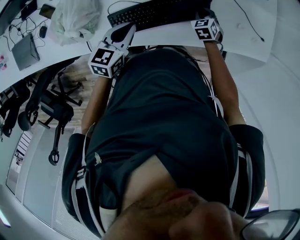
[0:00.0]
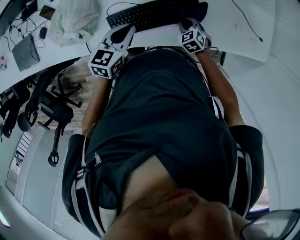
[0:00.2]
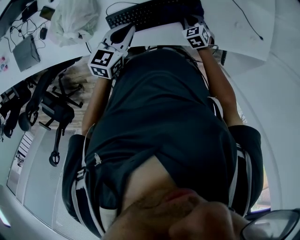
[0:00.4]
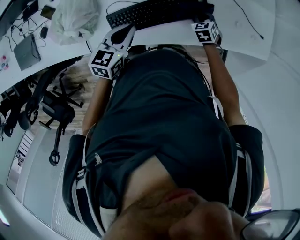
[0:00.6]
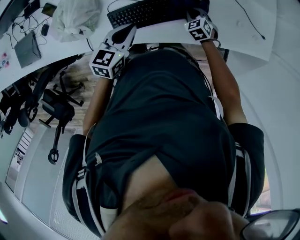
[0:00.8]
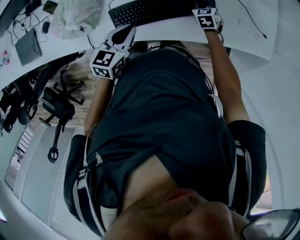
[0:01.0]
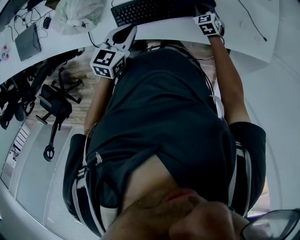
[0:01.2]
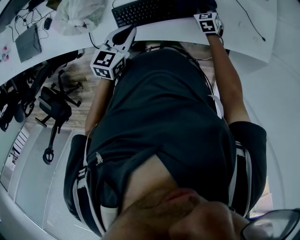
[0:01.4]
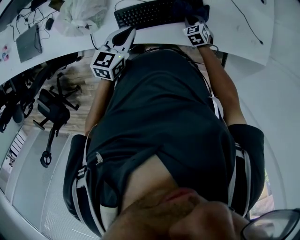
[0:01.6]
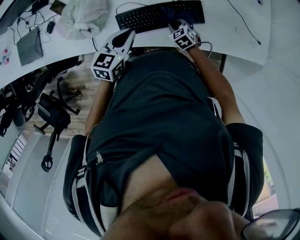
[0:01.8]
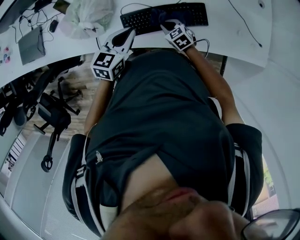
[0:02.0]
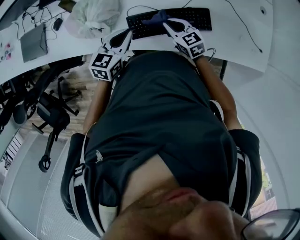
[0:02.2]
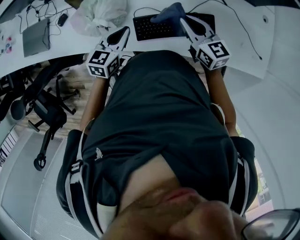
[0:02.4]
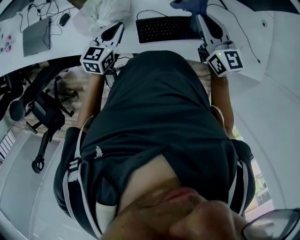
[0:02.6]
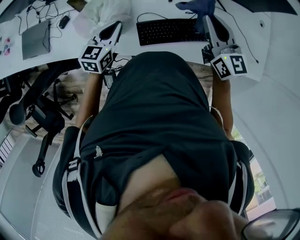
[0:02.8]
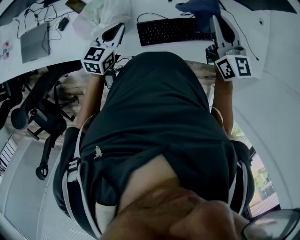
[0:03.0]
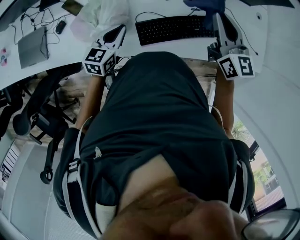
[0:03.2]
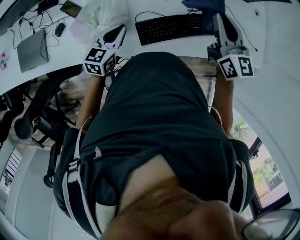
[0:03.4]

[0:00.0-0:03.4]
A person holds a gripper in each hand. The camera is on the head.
0:00.0 to 0:01.6: The right gripper moves forward and backward over some 10 cm, changing direction 2 times; the left gripper is displaced backward by roughly 5 cm.
0:01.6 to 0:03.4: The right gripper goes about 40 cm upward, and tips its fingers upward by roughly 50 degrees. The left gripper goes roughly 15 cm to the left.

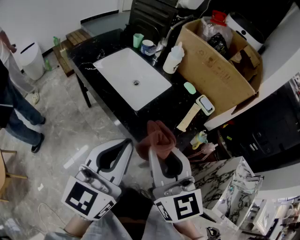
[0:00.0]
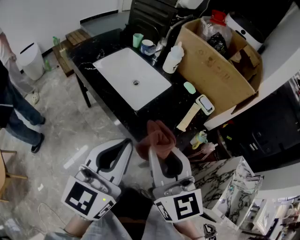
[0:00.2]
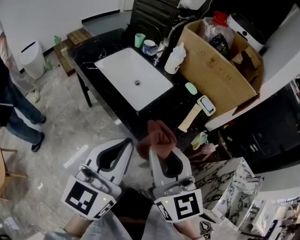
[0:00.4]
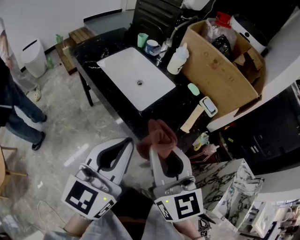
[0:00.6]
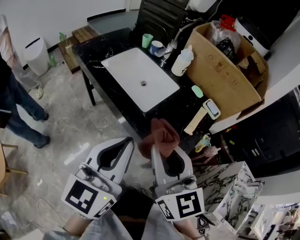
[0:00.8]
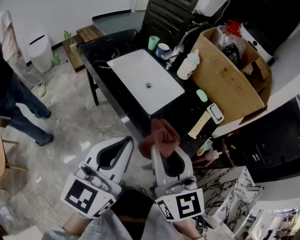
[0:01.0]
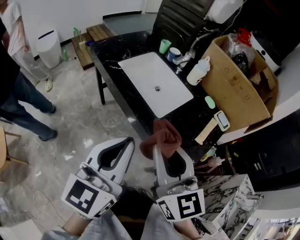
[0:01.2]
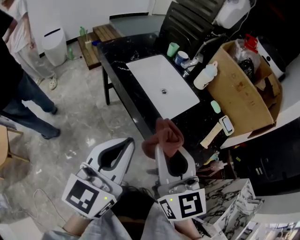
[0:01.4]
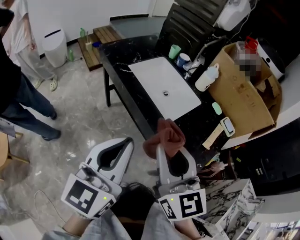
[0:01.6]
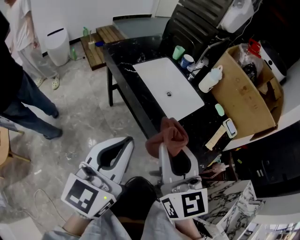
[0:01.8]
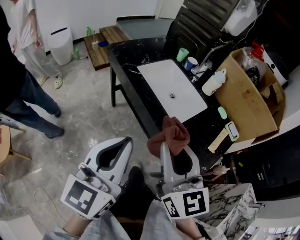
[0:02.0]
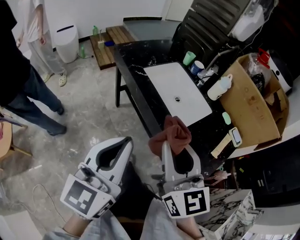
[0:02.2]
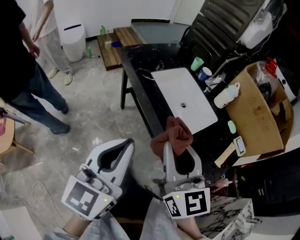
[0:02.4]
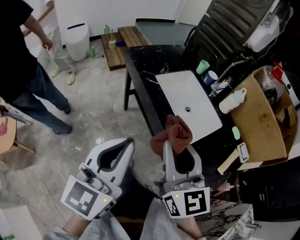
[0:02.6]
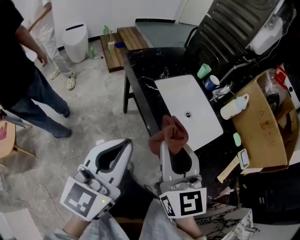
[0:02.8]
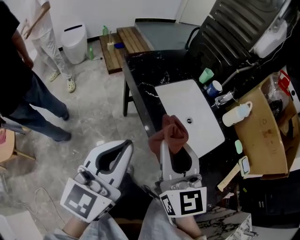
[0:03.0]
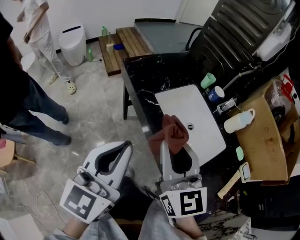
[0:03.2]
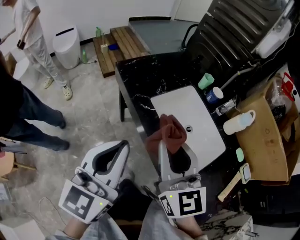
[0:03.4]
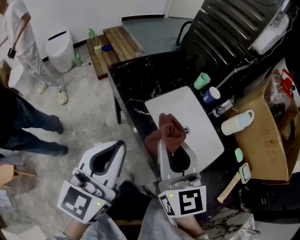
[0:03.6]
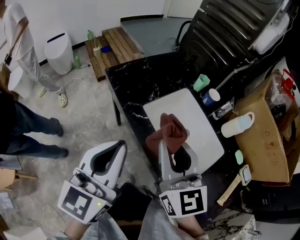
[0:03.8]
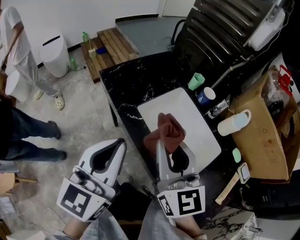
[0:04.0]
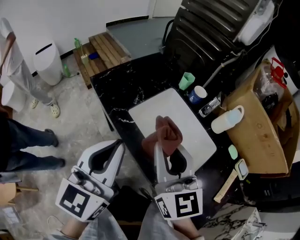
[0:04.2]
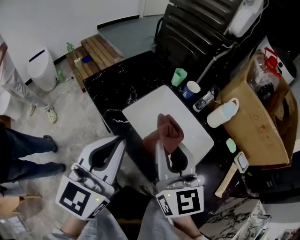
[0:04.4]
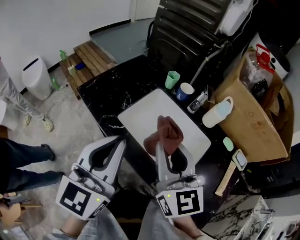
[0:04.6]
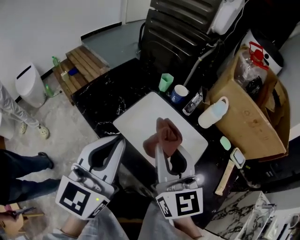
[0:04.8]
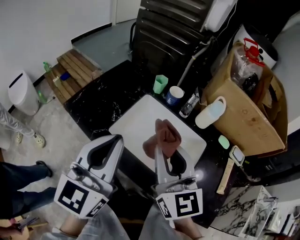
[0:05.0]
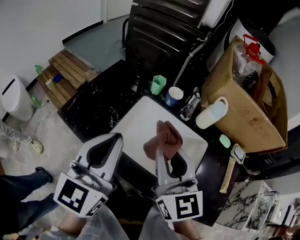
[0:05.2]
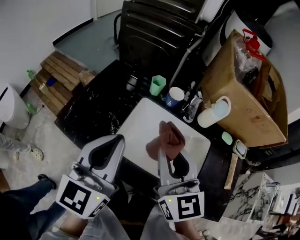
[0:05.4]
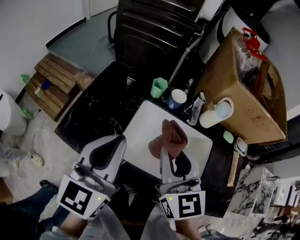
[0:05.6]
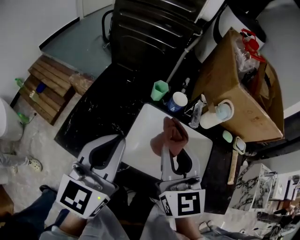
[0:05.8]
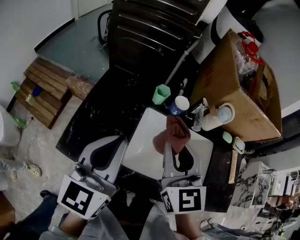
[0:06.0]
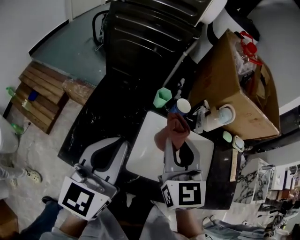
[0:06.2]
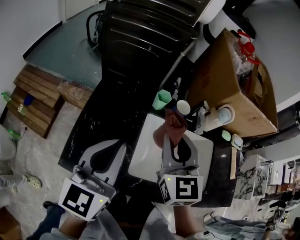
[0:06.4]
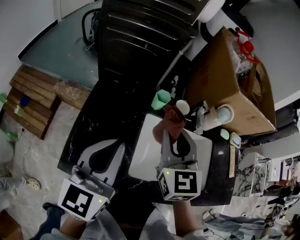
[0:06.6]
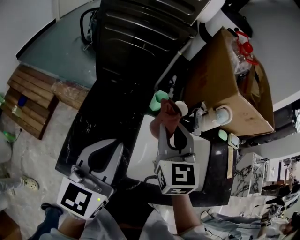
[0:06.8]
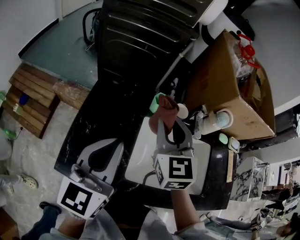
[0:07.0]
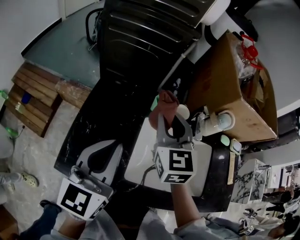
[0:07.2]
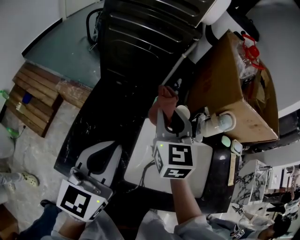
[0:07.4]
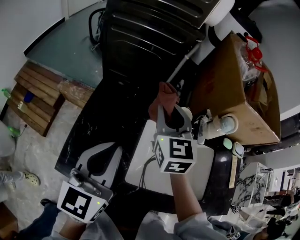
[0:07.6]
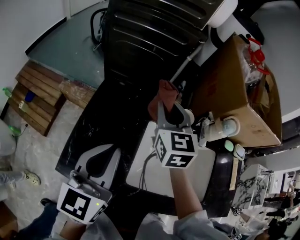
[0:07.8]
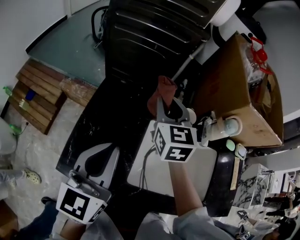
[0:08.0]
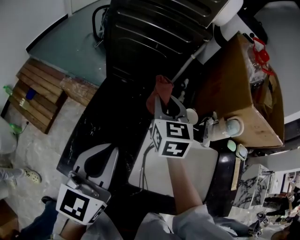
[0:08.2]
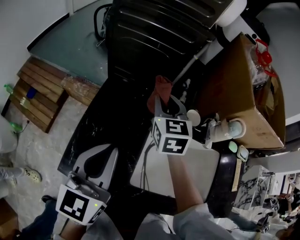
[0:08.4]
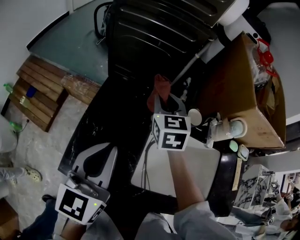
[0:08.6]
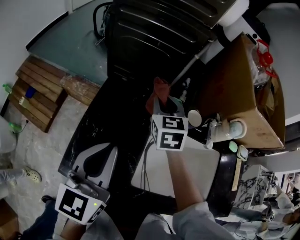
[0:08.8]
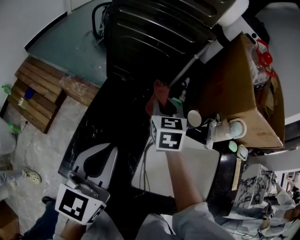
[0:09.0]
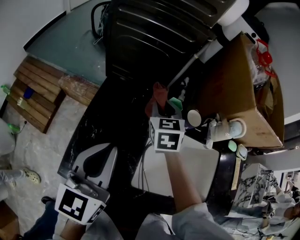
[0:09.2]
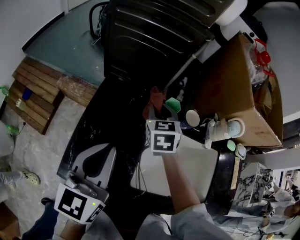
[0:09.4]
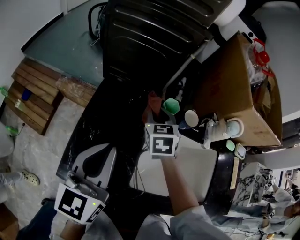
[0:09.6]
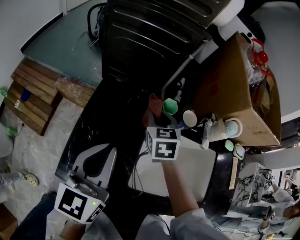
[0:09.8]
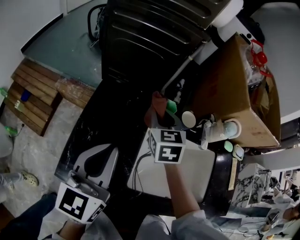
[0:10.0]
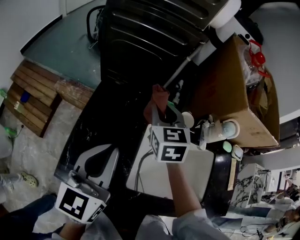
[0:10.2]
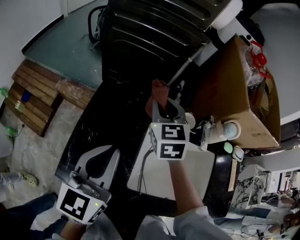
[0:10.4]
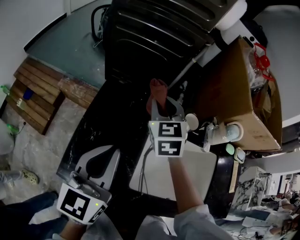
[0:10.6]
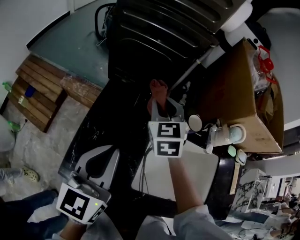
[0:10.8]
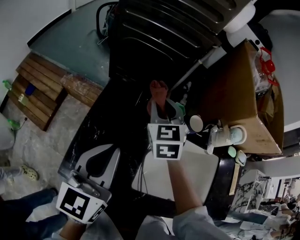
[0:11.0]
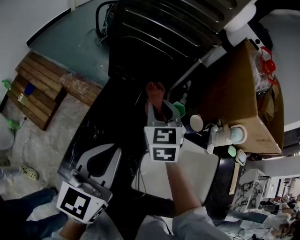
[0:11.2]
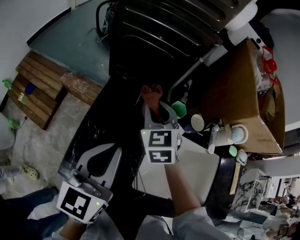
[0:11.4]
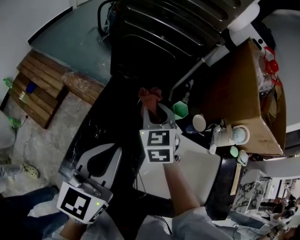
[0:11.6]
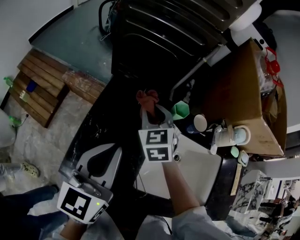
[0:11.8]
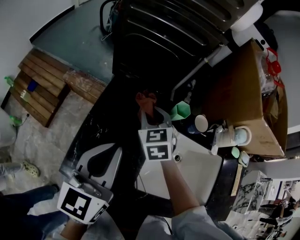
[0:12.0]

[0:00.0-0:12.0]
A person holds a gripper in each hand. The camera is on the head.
0:00.0 to 0:01.6: The two grippers go approximately 15 cm to the left.
0:01.6 to 0:03.0: The grippers both shift forward and to the left by roughly 20 cm.
0:03.0 to 0:04.4: The left gripper goes about 20 cm forward. The right gripper is displaced forward and to the right by some 15 cm.
0:04.4 to 0:06.0: The right gripper shifts by some 20 cm, and swivels some 40 degrees; the left gripper shifts by some 25 cm, and swivels about 30 degrees.
0:06.0 to 0:07.6: The right gripper heads forward and to the left, covering approximately 20 cm. Meanwhile the left gripper shifts roughly 5 cm forward.
0:07.6 to 0:09.0: The right gripper goes roughly 10 cm downward and forward.
0:09.0 to 0:10.4: The right gripper moves upward, approximately 5 cm.
0:10.4 to 0:12.0: The right gripper is displaced downward and to the left by approximately 10 cm.

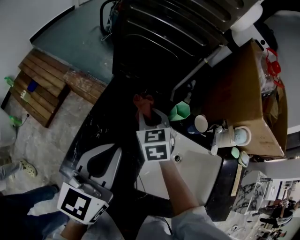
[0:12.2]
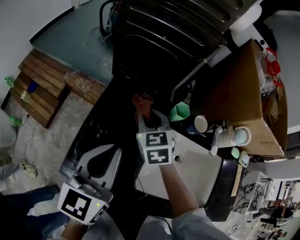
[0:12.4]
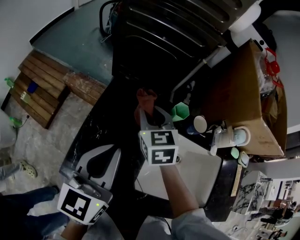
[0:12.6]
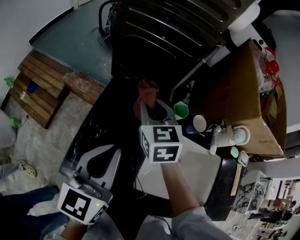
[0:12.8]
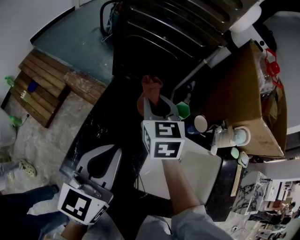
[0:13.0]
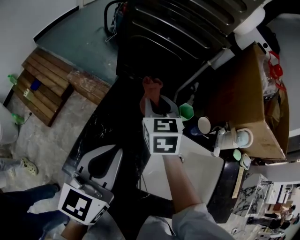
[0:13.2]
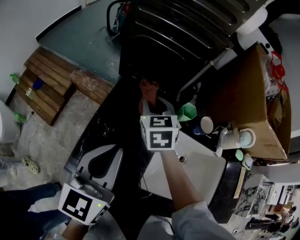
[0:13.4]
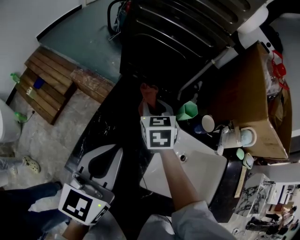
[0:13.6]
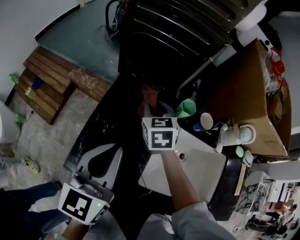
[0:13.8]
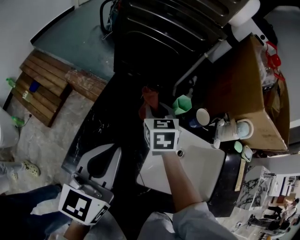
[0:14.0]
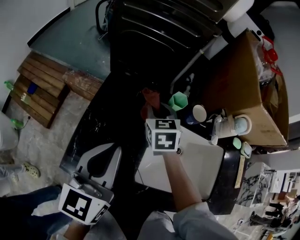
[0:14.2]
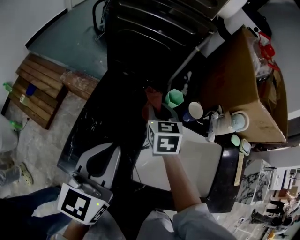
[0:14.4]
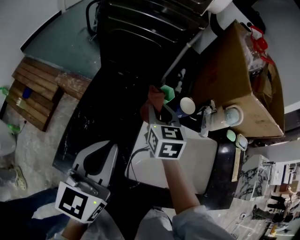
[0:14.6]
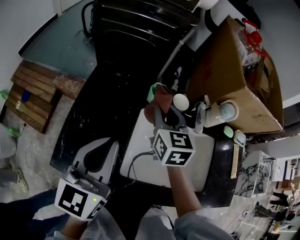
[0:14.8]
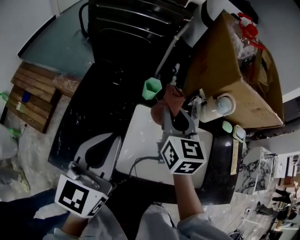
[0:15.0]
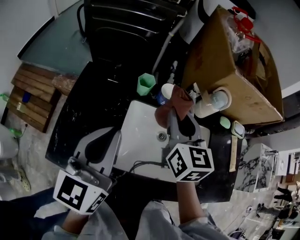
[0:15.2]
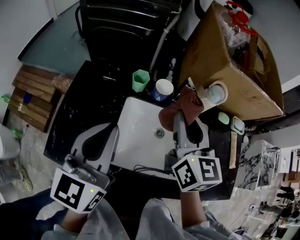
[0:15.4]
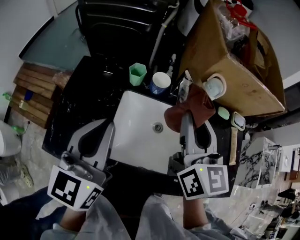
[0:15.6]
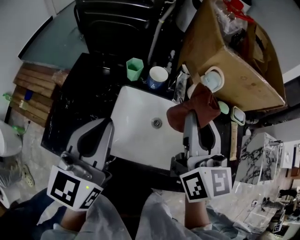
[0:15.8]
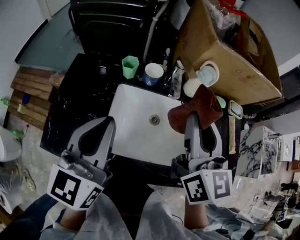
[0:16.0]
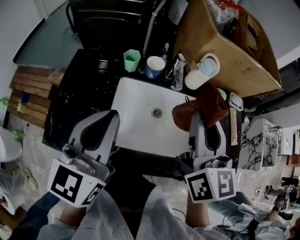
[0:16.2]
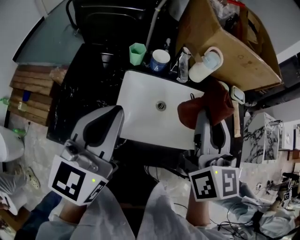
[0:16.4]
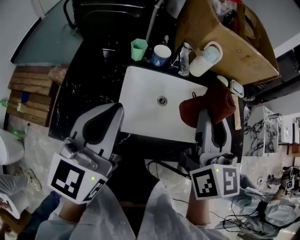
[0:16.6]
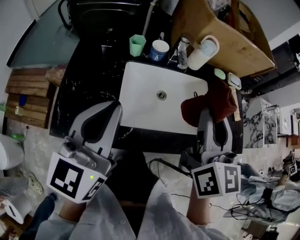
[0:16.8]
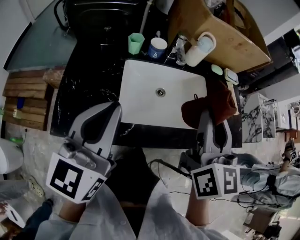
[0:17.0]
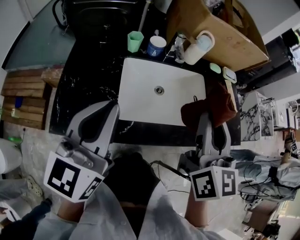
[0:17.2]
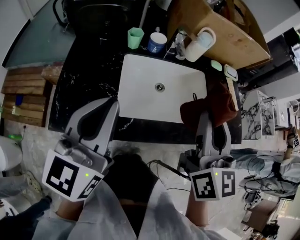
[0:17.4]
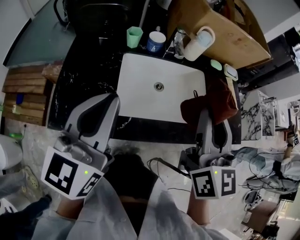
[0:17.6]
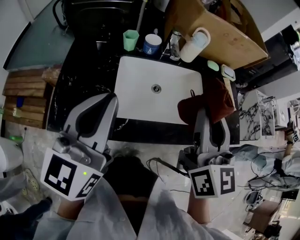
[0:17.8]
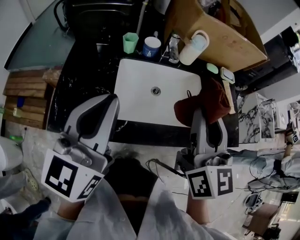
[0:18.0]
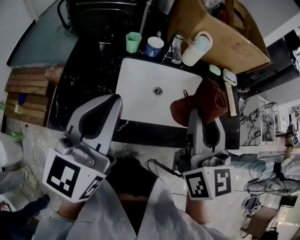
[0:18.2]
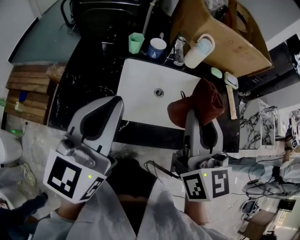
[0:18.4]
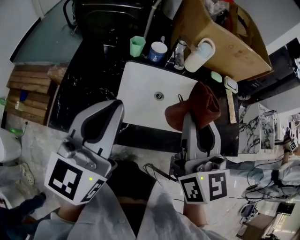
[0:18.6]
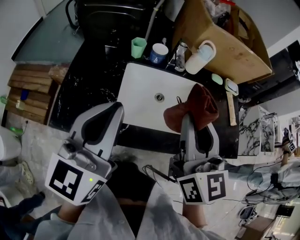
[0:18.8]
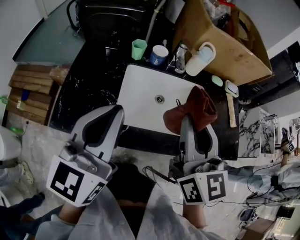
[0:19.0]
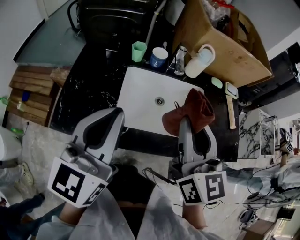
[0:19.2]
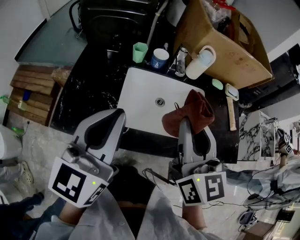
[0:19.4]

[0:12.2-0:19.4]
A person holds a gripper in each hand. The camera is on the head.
0:12.2 to 0:13.6: The right gripper goes upward and returns, some 10 cm each way.
0:13.6 to 0:15.0: The left gripper travels to the right by some 10 cm. The right gripper moves to the right and upward, about 25 cm, and rotates about 30 degrees.
0:15.0 to 0:16.6: The left gripper heads backward and to the right, covering approximately 10 cm; the right gripper shifts approximately 25 cm backward, to the right and upward, and turns by some 20 degrees.
0:16.6 to 0:18.0: The right gripper goes roughly 5 cm backward.
0:18.0 to 0:19.4: There are only small adjustments of the grippers.

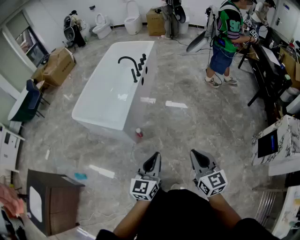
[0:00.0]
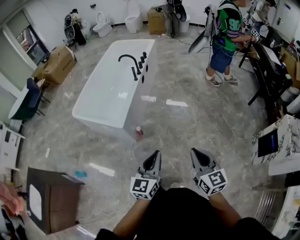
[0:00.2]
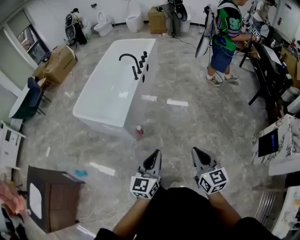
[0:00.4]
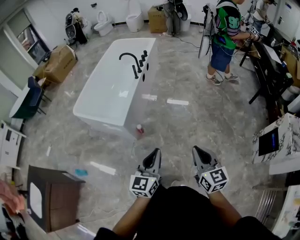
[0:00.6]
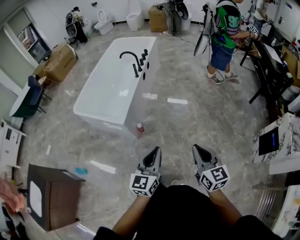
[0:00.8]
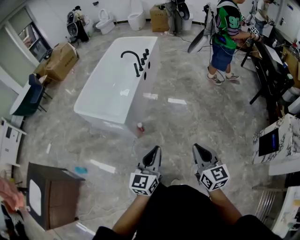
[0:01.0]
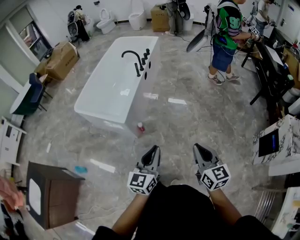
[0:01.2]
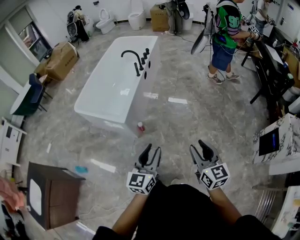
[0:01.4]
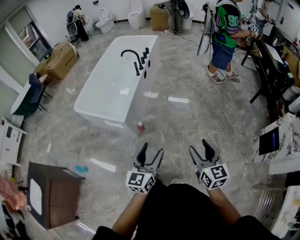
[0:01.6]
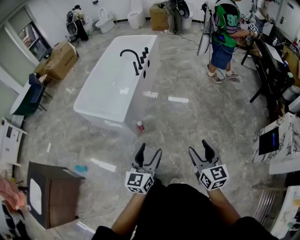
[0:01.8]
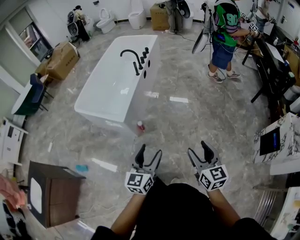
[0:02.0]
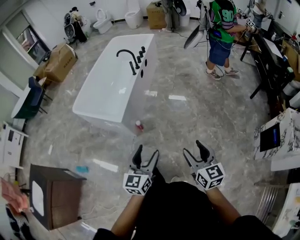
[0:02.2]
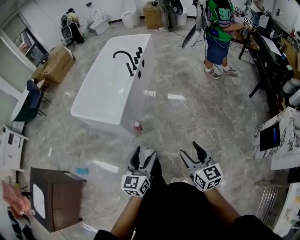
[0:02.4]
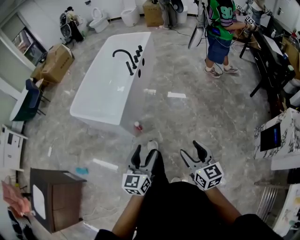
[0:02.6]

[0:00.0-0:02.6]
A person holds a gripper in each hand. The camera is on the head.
0:00.0 to 0:01.2: There are only small adjustments of the grippers.
0:01.2 to 0:02.6: The right gripper moves about 5 cm, and opens up. Meanwhile the left gripper opens its fingers.
